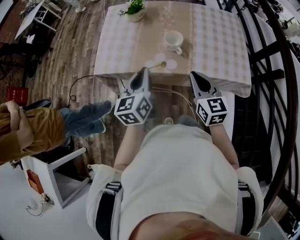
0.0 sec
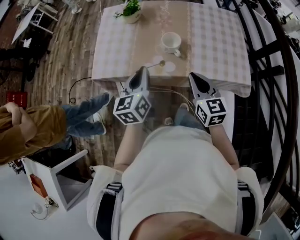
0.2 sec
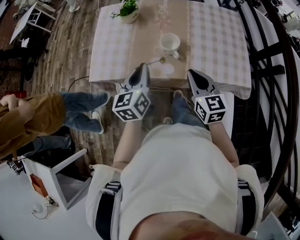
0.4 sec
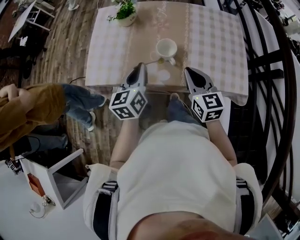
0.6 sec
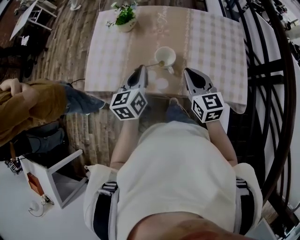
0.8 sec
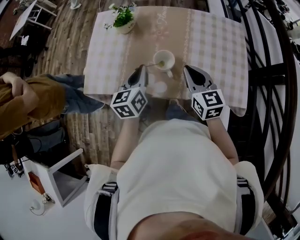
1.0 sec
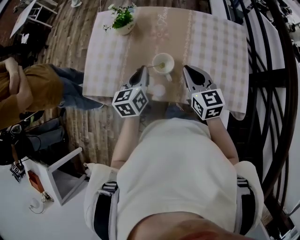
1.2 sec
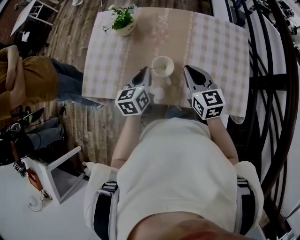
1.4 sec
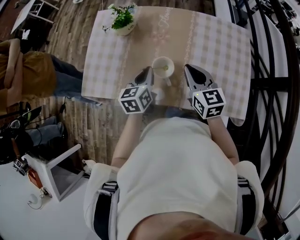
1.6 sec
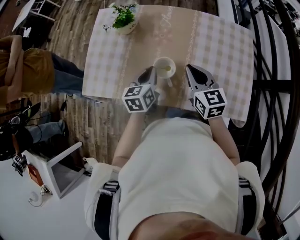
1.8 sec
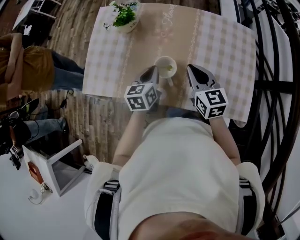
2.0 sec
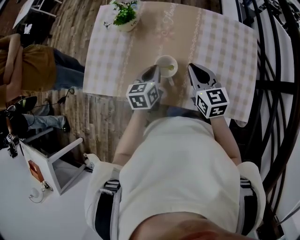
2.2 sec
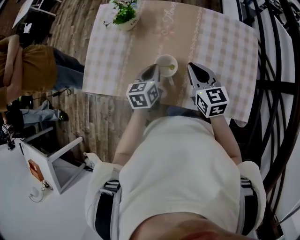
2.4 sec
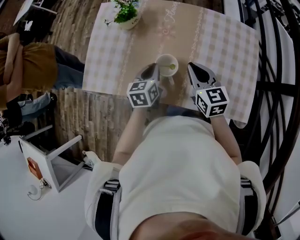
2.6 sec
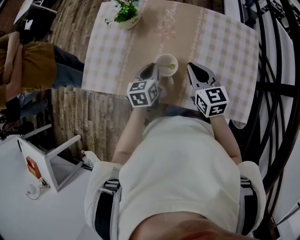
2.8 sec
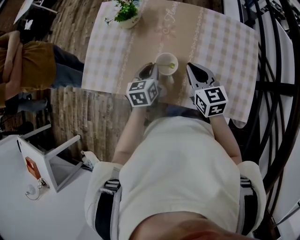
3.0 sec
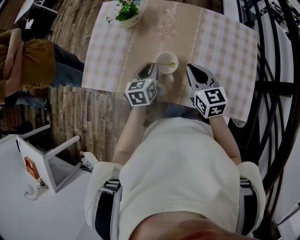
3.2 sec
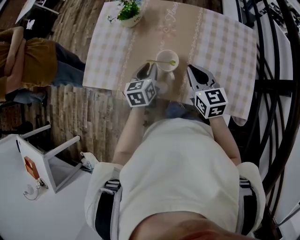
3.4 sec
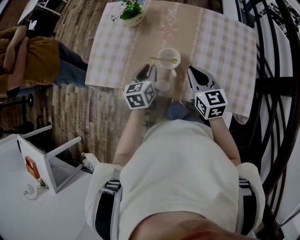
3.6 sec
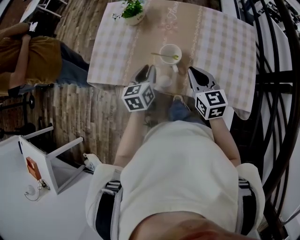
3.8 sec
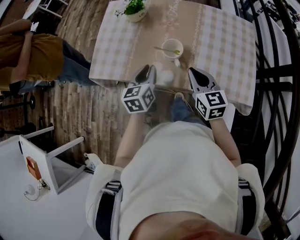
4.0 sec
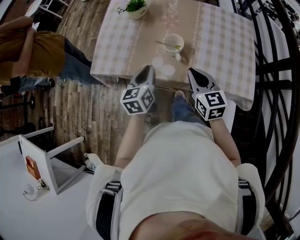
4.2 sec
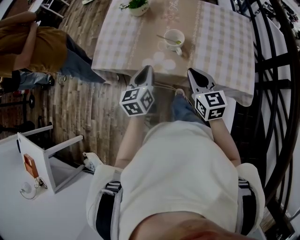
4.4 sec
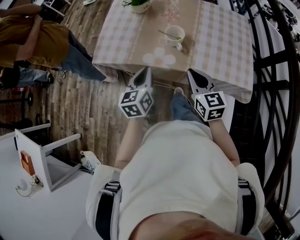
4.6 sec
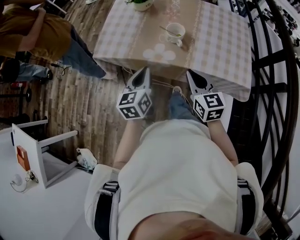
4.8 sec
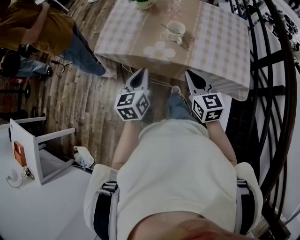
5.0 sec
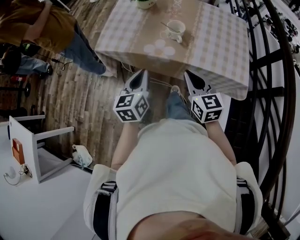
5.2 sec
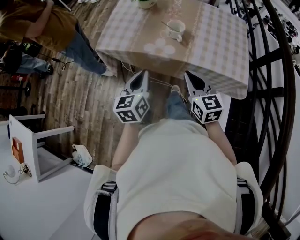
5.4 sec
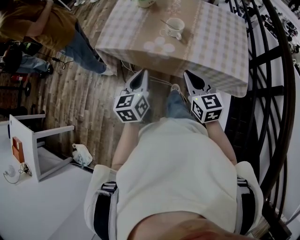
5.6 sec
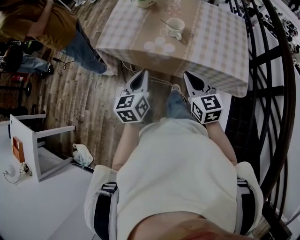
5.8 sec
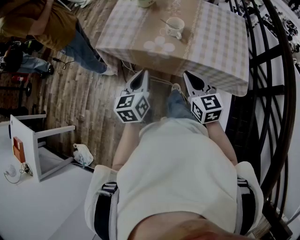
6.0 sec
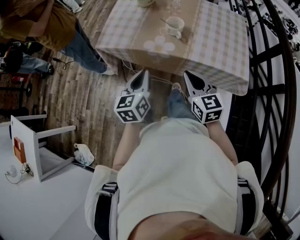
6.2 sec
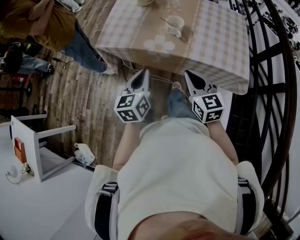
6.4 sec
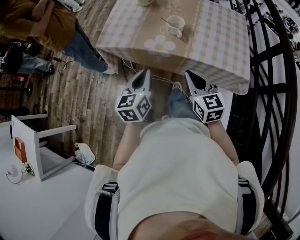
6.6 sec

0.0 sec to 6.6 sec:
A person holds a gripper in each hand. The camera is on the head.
0.0 sec to 1.6 sec: The left gripper goes some 15 cm downward and to the right, while the right gripper moves roughly 5 cm.
1.6 sec to 3.2 sec: The grippers move only a little.
3.2 sec to 5.0 sec: The left gripper heads backward and upward, covering approximately 25 cm. The right gripper shifts roughly 20 cm backward.
5.0 sec to 6.6 sec: The left gripper shifts roughly 5 cm backward.

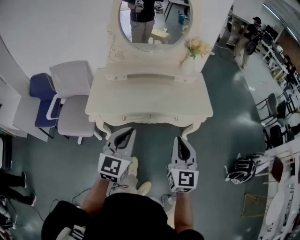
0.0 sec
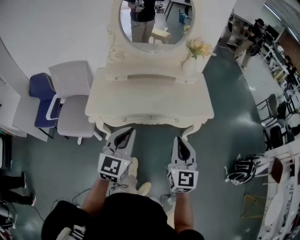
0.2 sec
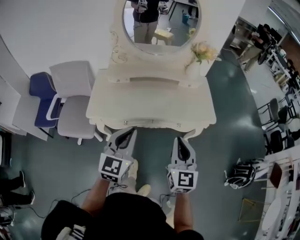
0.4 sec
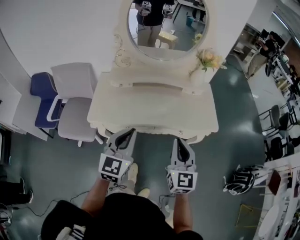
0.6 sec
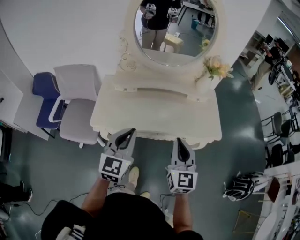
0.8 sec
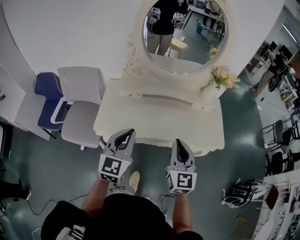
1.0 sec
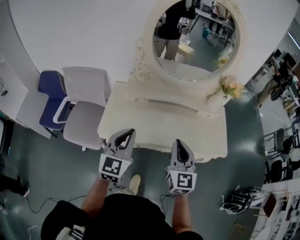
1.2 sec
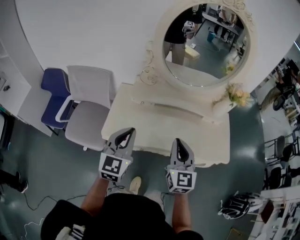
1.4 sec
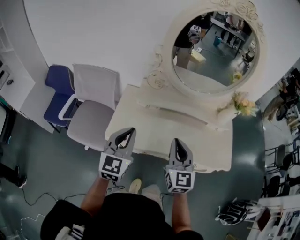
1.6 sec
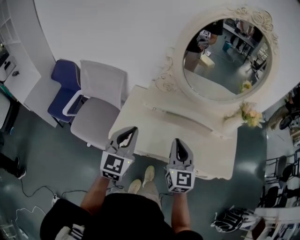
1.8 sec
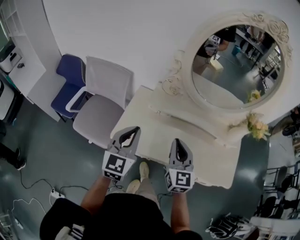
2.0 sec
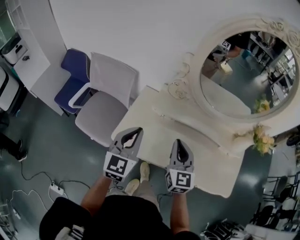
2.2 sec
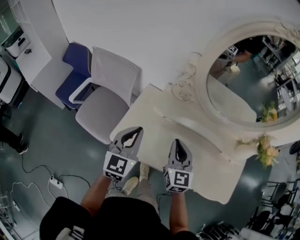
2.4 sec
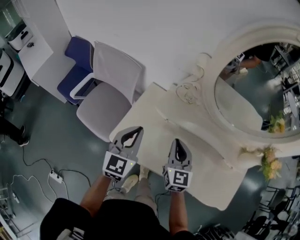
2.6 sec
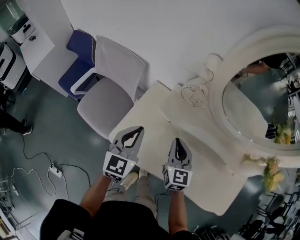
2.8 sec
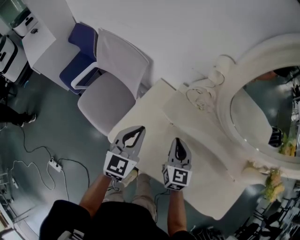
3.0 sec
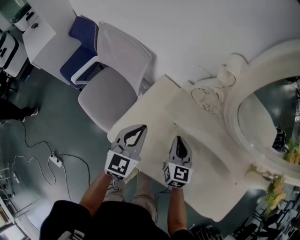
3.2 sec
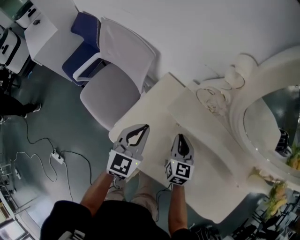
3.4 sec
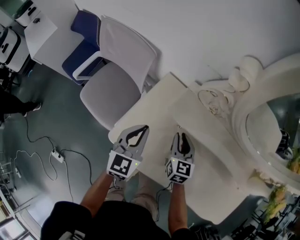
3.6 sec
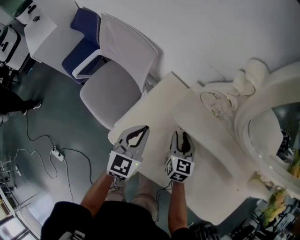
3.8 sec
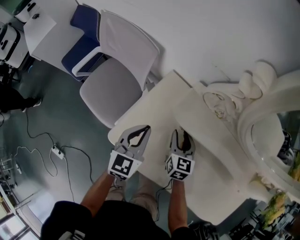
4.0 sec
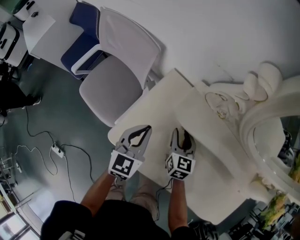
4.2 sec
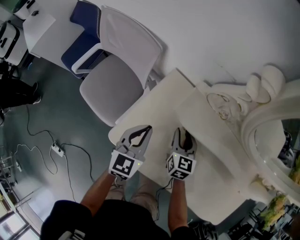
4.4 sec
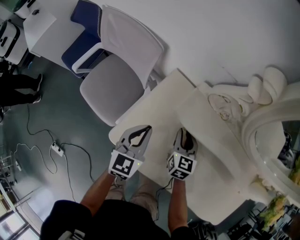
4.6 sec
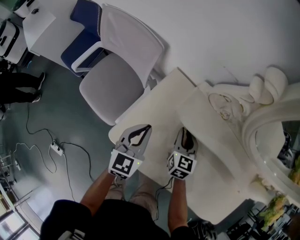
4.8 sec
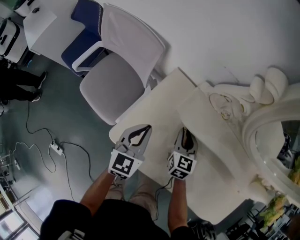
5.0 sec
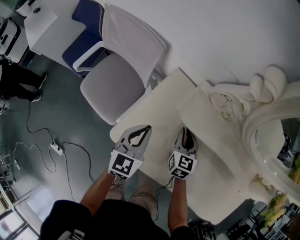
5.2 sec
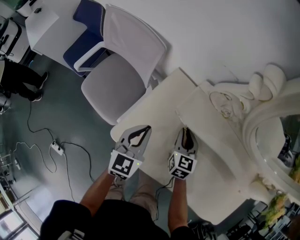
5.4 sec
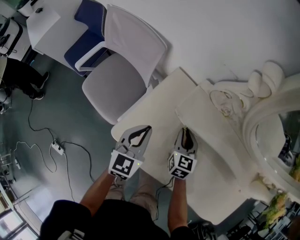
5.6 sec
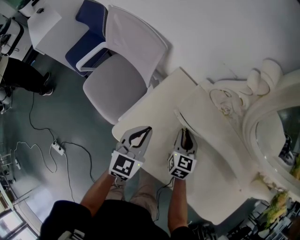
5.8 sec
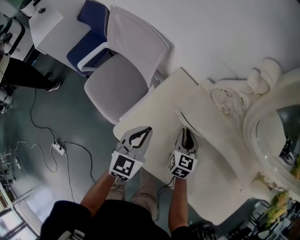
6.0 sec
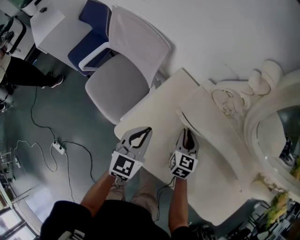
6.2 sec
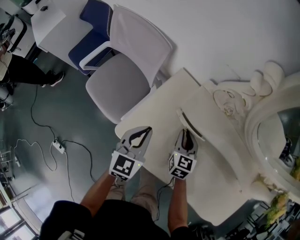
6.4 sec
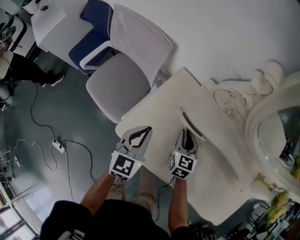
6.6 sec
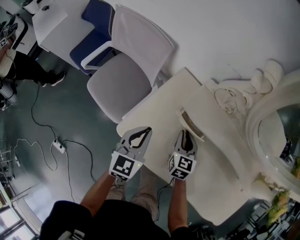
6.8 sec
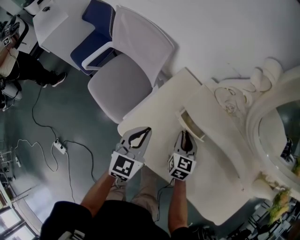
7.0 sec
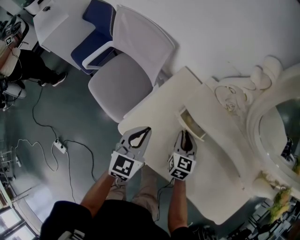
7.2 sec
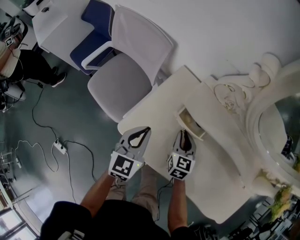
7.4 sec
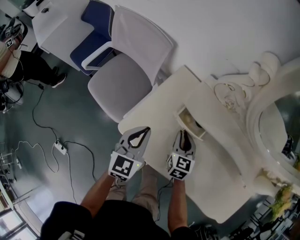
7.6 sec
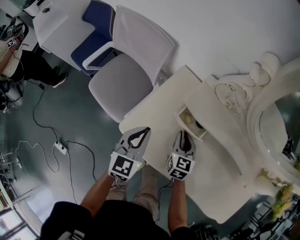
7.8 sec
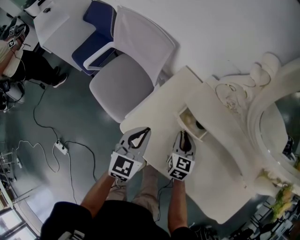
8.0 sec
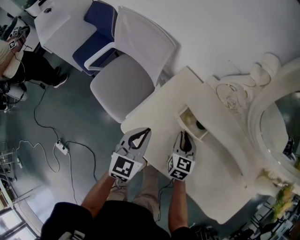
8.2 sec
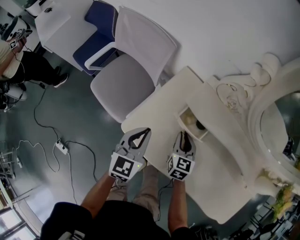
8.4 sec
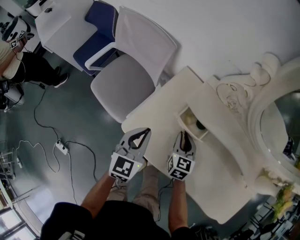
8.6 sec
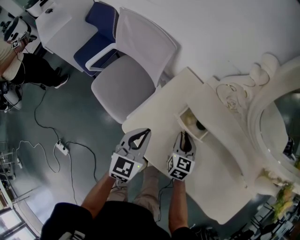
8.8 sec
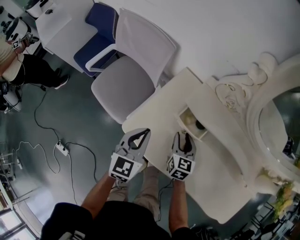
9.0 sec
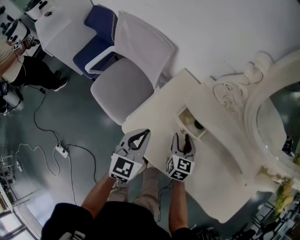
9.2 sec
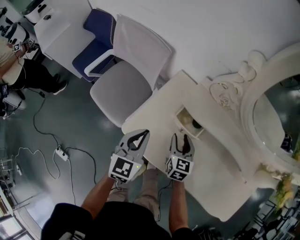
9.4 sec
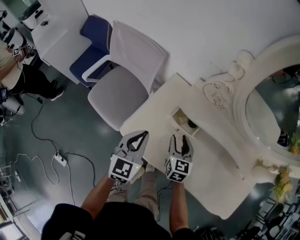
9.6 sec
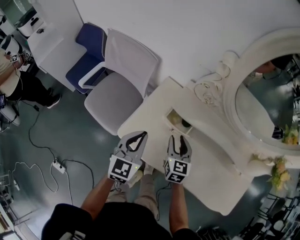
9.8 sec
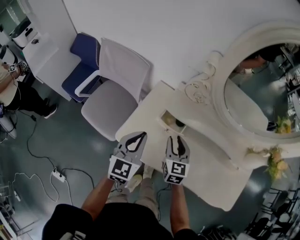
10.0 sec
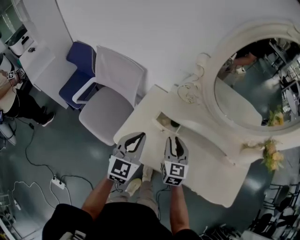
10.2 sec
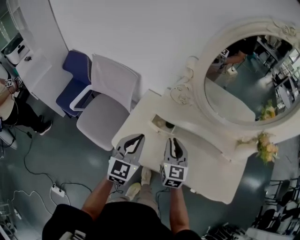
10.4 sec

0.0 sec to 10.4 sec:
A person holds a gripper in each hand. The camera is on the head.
0.0 sec to 1.4 sec: The grippers both shift forward and to the left by about 30 cm.
1.4 sec to 3.0 sec: Both grippers move forward and downward, approximately 30 cm. The left gripper changes its angle by roughly 20 degrees. The right gripper rotates roughly 30 degrees.
3.0 sec to 4.4 sec: The left gripper shifts some 10 cm downward, while the right gripper travels downward and forward by roughly 15 cm, and opens its fingers.
4.4 sec to 6.0 sec: The grippers stay close to where they were, moving slightly.
6.0 sec to 7.4 sec: There are only small adjustments of the grippers.
7.4 sec to 9.0 sec: The right gripper opens up.
9.0 sec to 10.4 sec: The two grippers go approximately 20 cm upward. The left gripper changes its angle by roughly 20 degrees. Meanwhile the right gripper closes up.

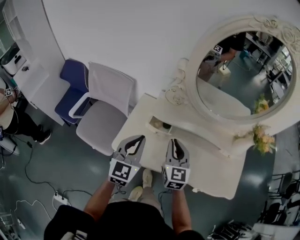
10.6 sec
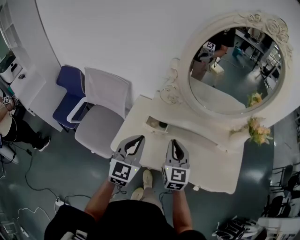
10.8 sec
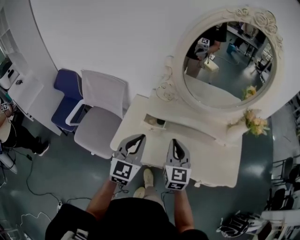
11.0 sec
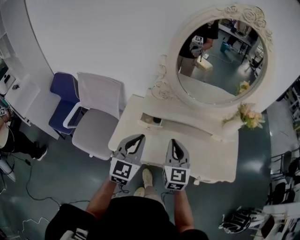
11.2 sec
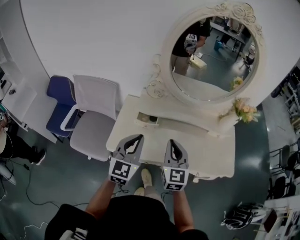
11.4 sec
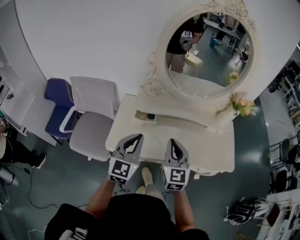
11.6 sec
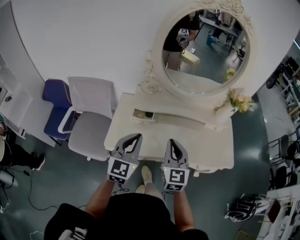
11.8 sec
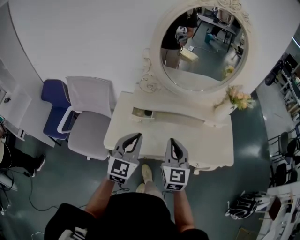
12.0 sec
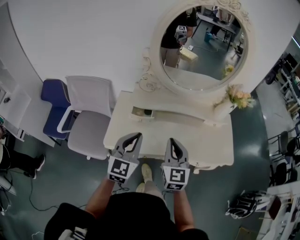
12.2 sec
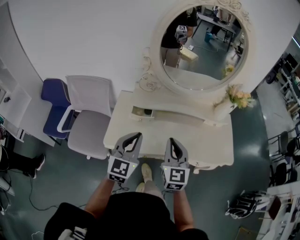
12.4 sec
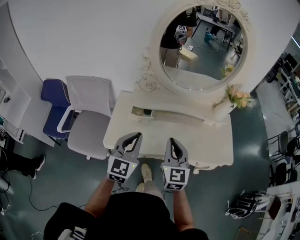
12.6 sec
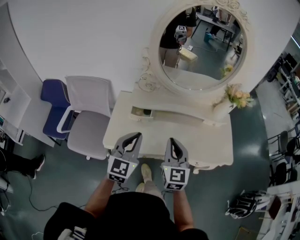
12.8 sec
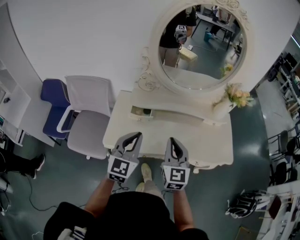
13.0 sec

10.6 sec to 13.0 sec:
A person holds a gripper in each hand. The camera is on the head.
10.6 sec to 11.8 sec: The two grippers go about 10 cm backward and to the right.
11.8 sec to 13.0 sec: There are only small adjustments of the grippers.

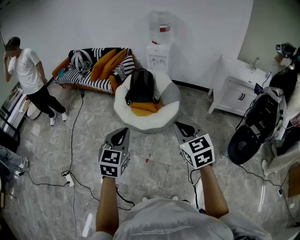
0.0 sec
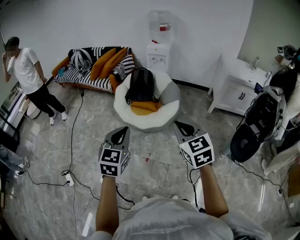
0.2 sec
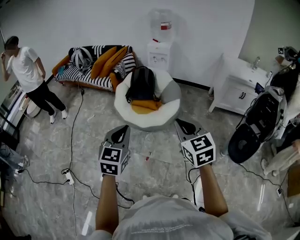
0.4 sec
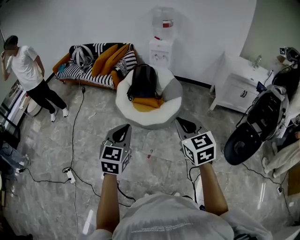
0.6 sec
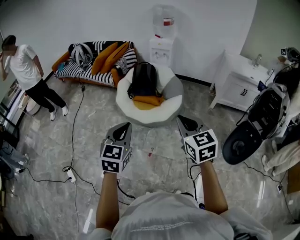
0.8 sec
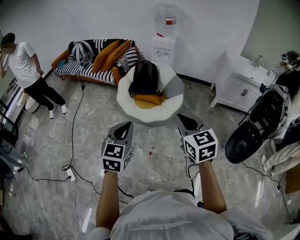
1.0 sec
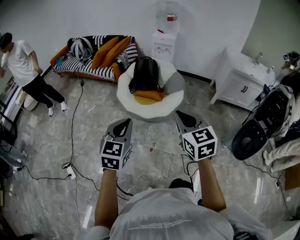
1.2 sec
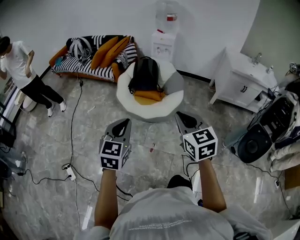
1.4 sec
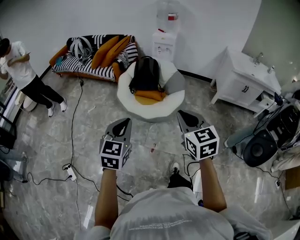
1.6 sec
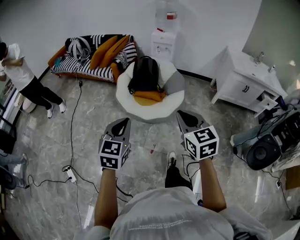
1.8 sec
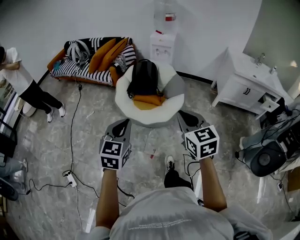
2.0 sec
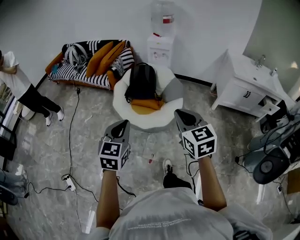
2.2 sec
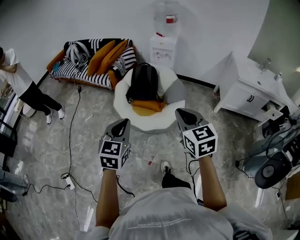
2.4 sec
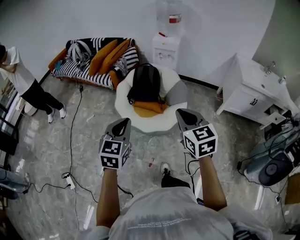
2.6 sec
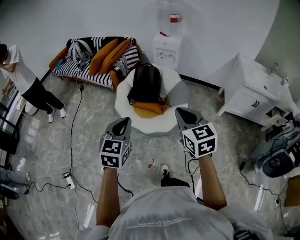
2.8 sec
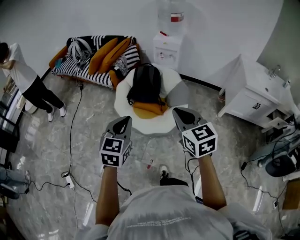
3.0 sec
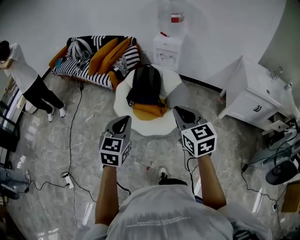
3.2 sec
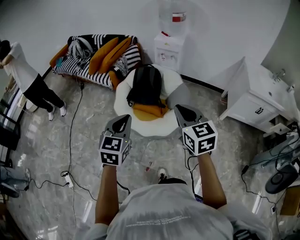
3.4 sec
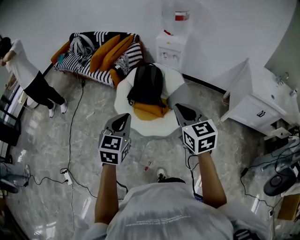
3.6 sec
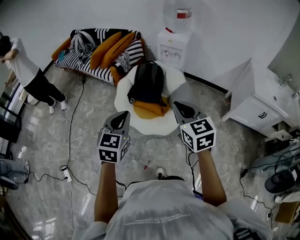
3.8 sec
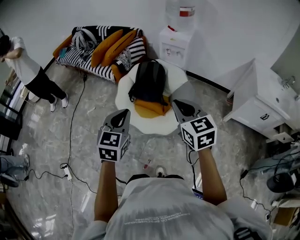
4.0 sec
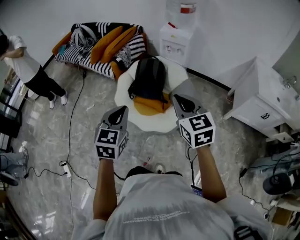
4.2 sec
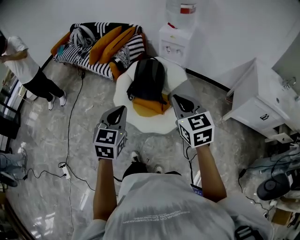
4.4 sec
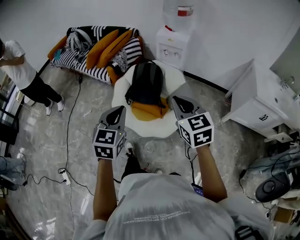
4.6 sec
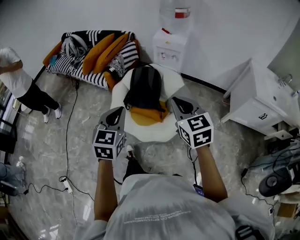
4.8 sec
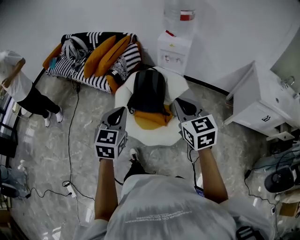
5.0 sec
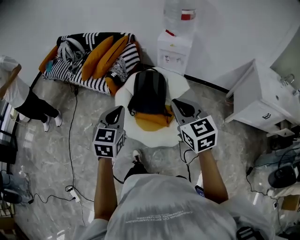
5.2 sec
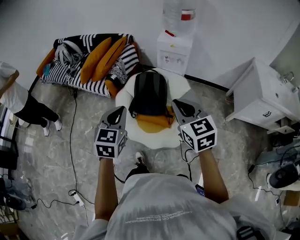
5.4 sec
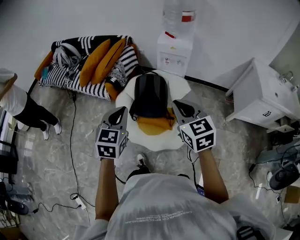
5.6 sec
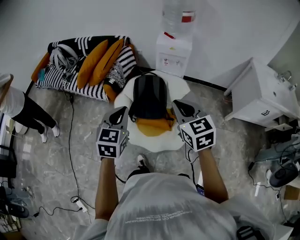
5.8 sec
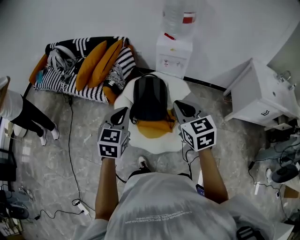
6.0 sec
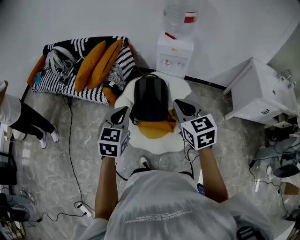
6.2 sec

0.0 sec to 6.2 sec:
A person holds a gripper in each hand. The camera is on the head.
0.0 sec to 1.6 sec: Both grippers move to the left, roughly 10 cm.
1.6 sec to 3.2 sec: The left gripper travels forward and to the right by some 30 cm. The right gripper goes approximately 30 cm forward.
3.2 sec to 4.6 sec: The grippers both shift forward by roughly 15 cm.
4.6 sec to 6.2 sec: Both grippers move forward and to the left, approximately 25 cm.
